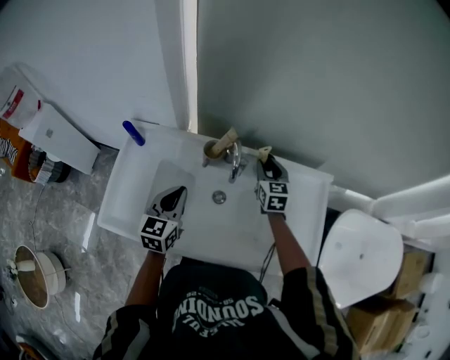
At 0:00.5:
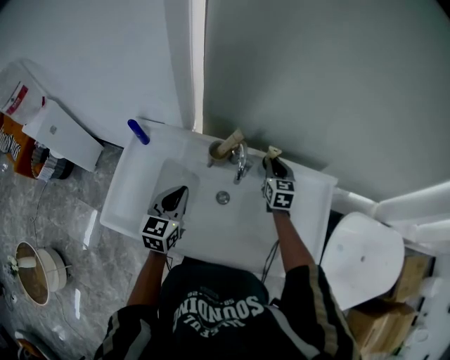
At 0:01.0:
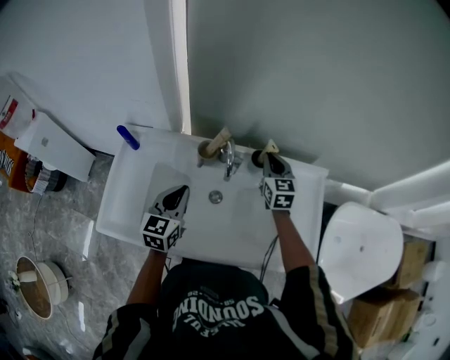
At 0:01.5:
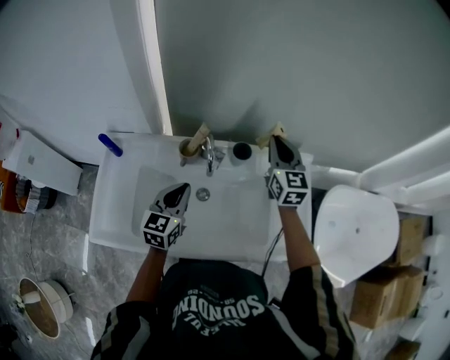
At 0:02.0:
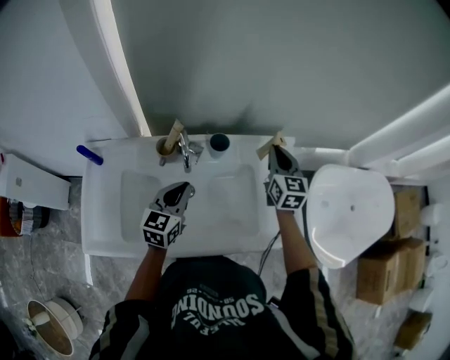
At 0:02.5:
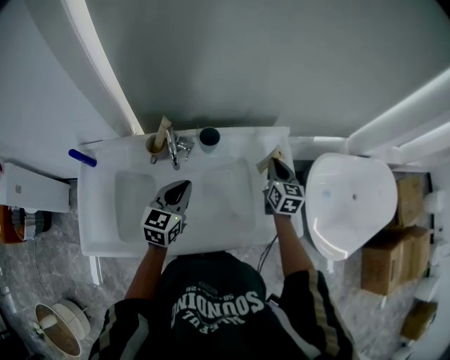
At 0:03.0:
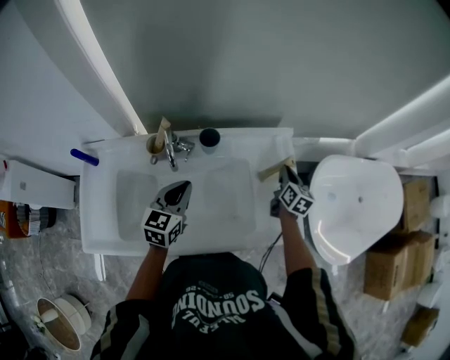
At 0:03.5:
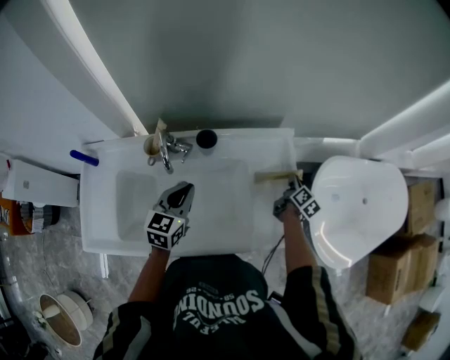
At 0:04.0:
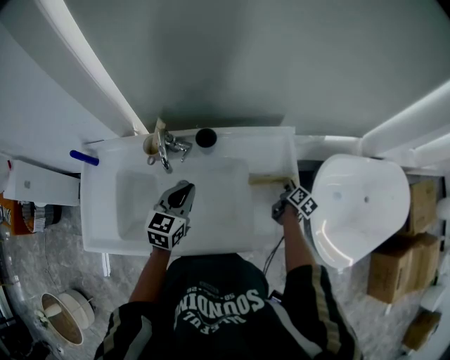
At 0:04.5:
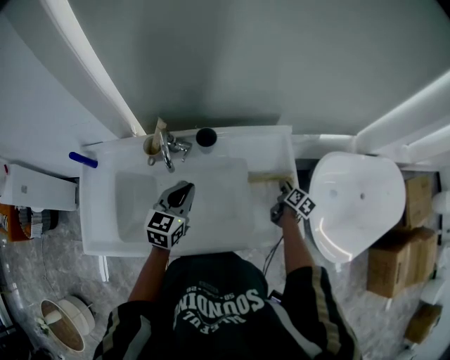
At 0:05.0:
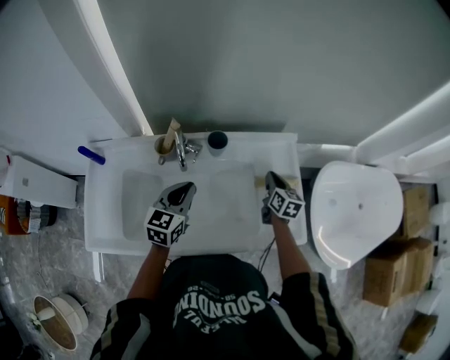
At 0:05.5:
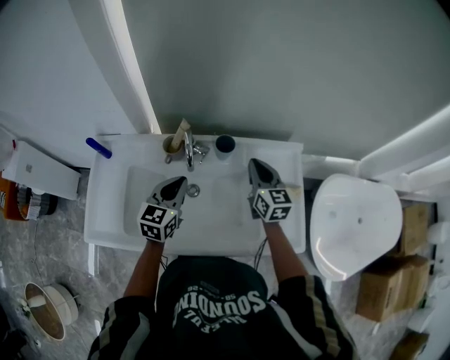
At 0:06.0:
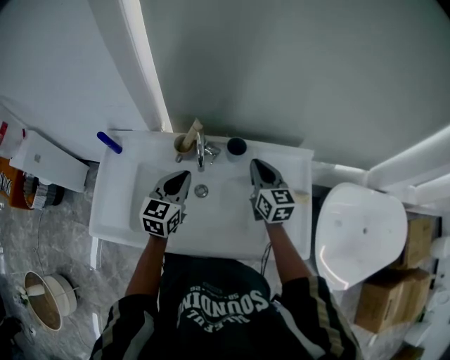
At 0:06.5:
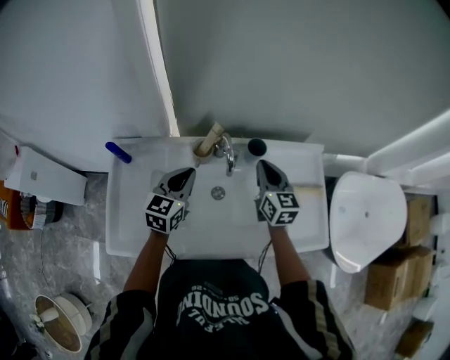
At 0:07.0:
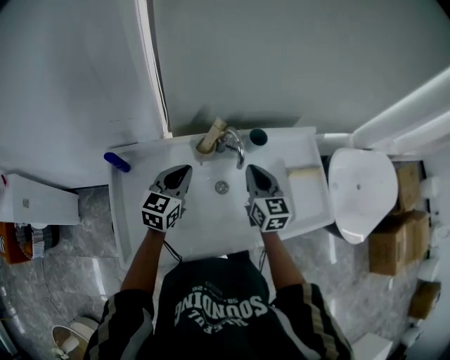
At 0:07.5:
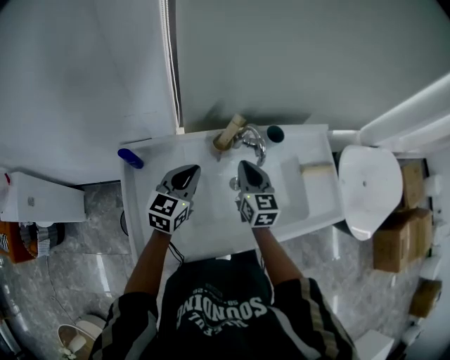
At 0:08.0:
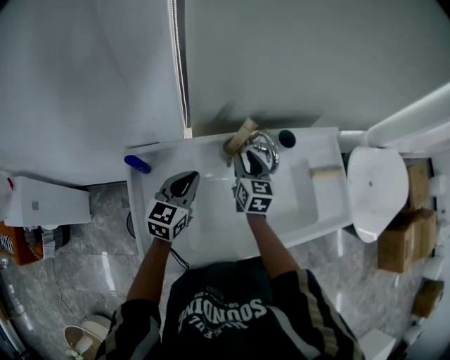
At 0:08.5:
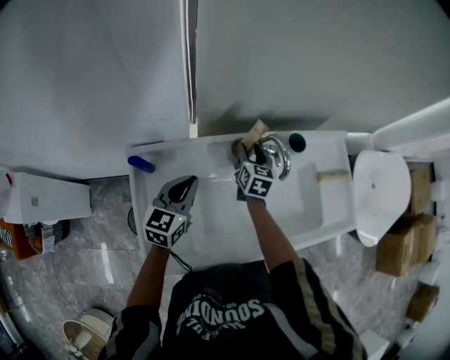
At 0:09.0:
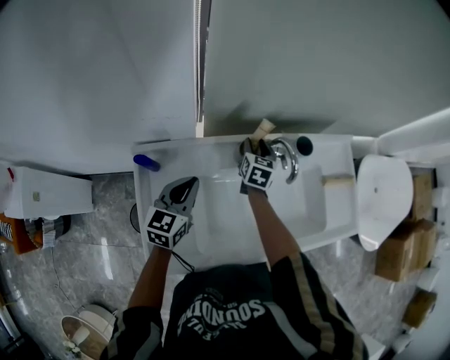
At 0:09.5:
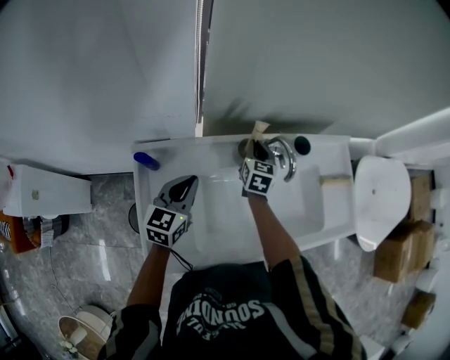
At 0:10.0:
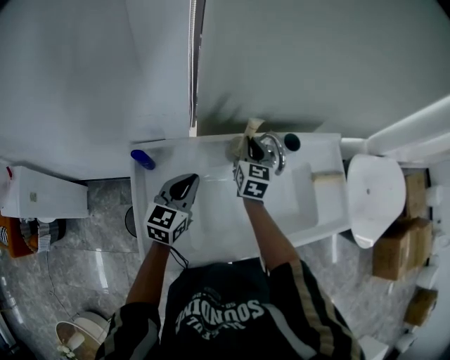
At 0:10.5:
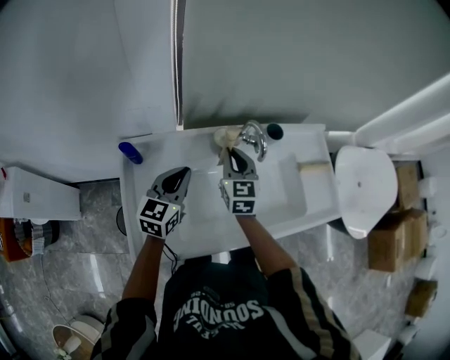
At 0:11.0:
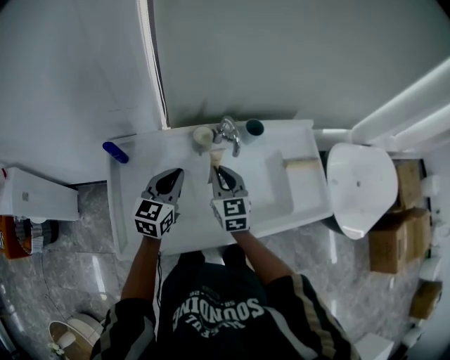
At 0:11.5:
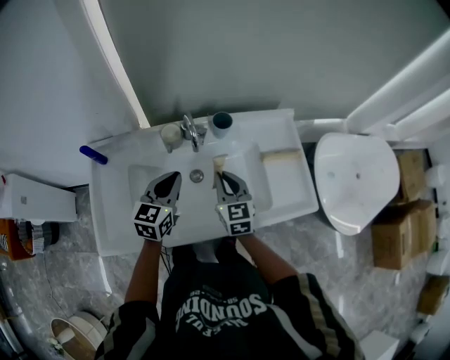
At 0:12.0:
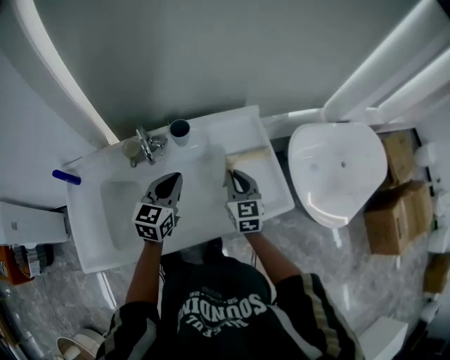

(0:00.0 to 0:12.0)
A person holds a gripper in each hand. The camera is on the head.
0:00.0 - 0:02.0: The right gripper travels to the right and upward by some 20 cm, and closes its fingers; the left gripper moves to the right, about 15 cm, and changes its angle by some 20 degrees.
0:02.0 - 0:04.0: The right gripper goes roughly 35 cm downward and to the right, and rotates around the line of its fingers by approximately 50 degrees, clockwise from behind. The left gripper shifts roughly 5 cm to the right.
0:04.0 - 0:06.0: The left gripper moves to the left, some 10 cm. The right gripper travels to the left and upward by about 35 cm, and rotates around the line of its fingers by about 50 degrees, counterclockwise from behind.
0:06.0 - 0:08.0: Both grippers move to the left, about 20 cm. The right gripper swivels about 20 degrees, and opens its fingers.
0:08.0 - 0:10.0: The right gripper reaches roughly 5 cm downward, then returns, and closes up.
0:10.0 - 0:12.0: The two grippers go roughly 35 cm to the right.

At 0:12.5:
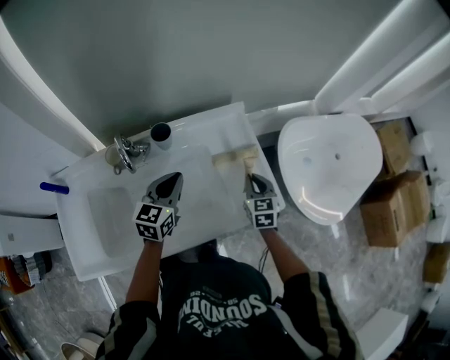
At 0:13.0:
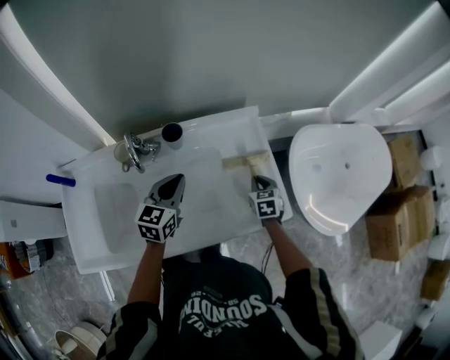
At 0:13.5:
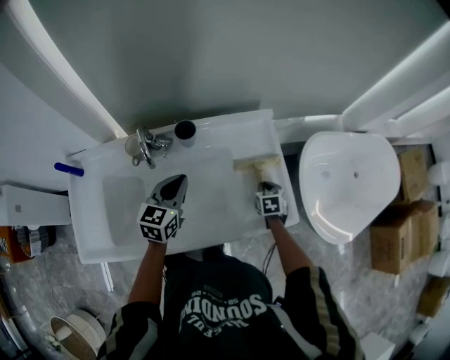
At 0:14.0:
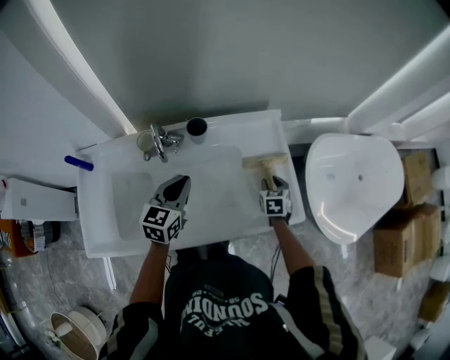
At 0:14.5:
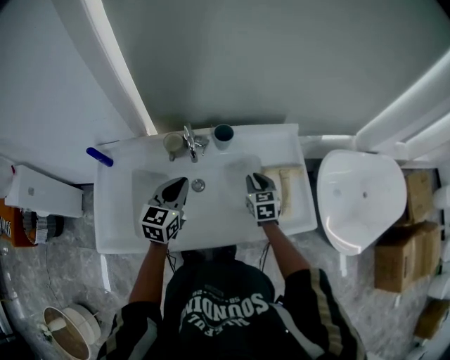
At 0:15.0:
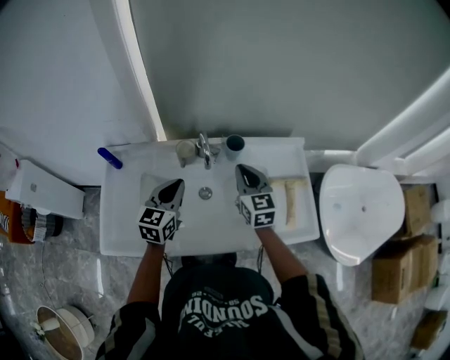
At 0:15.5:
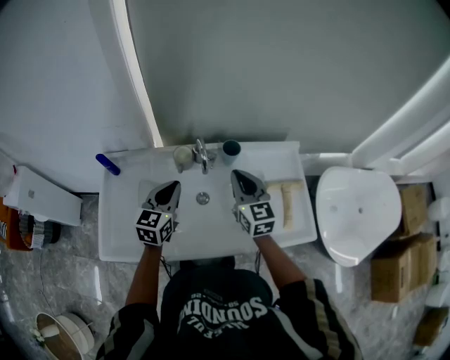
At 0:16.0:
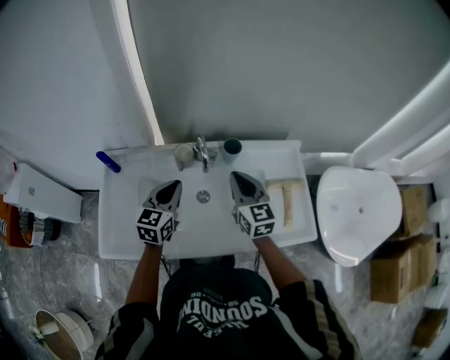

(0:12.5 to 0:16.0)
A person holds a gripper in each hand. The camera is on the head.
0:12.5 - 0:14.5: The left gripper is displaced to the left and backward by approximately 15 cm; the right gripper moves to the left, some 20 cm.
0:14.5 - 0:16.0: The left gripper is displaced to the left by about 5 cm, while the right gripper moves upward and to the left, approximately 20 cm, and rotates roughly 30 degrees.

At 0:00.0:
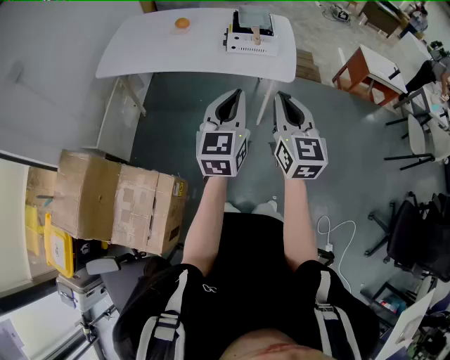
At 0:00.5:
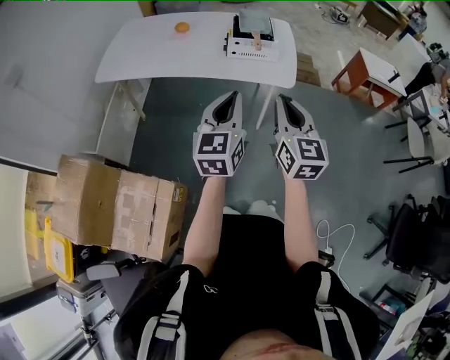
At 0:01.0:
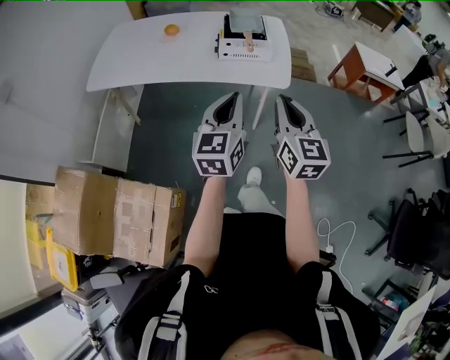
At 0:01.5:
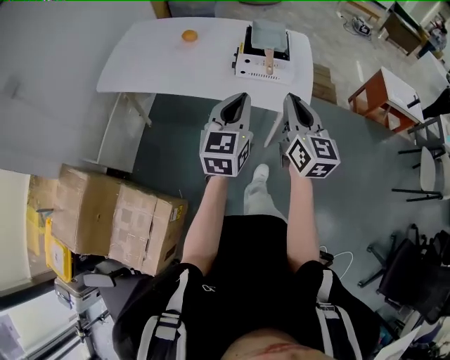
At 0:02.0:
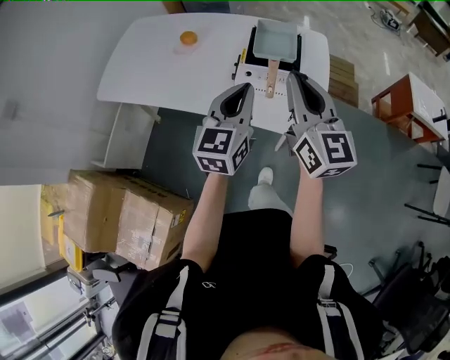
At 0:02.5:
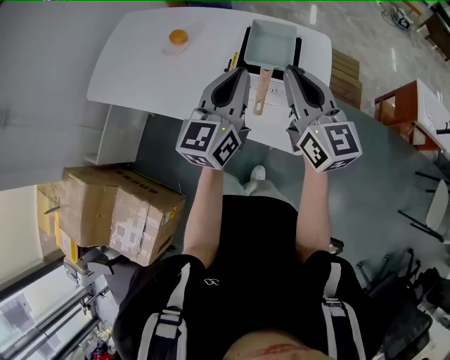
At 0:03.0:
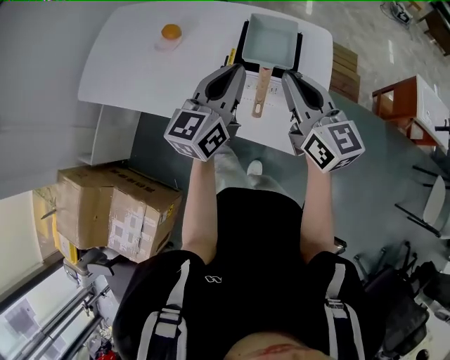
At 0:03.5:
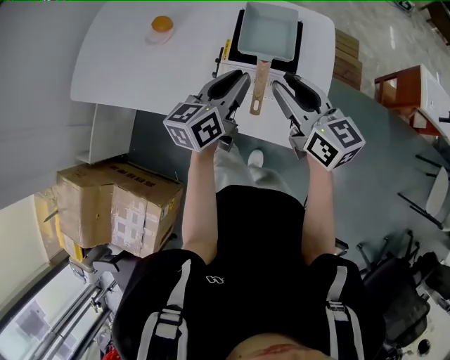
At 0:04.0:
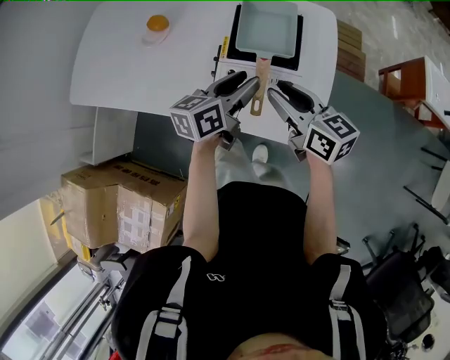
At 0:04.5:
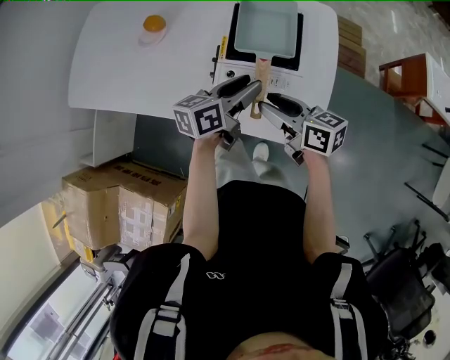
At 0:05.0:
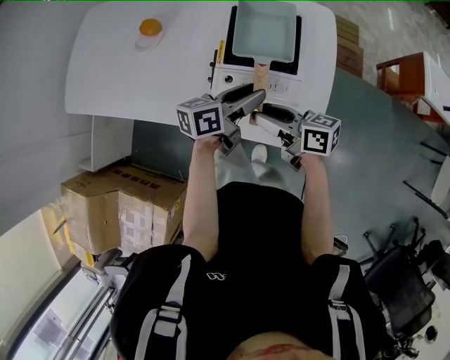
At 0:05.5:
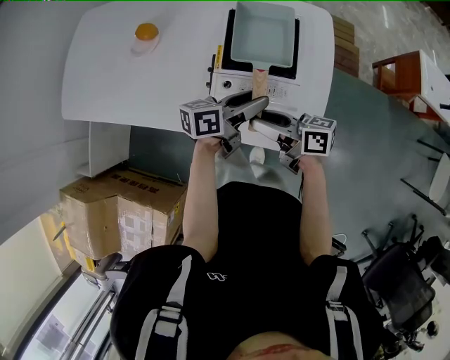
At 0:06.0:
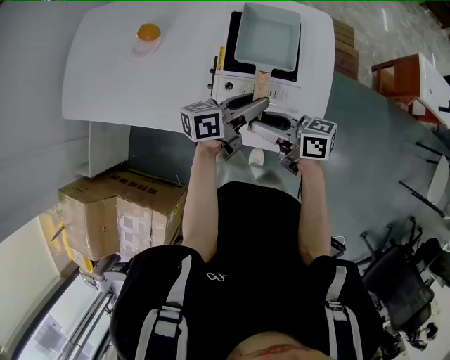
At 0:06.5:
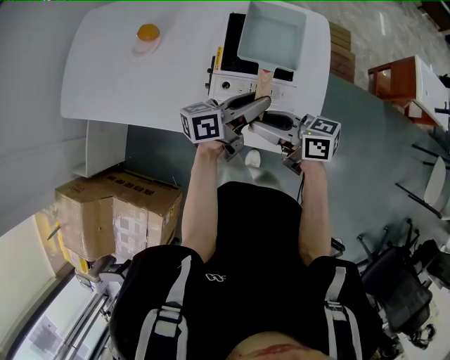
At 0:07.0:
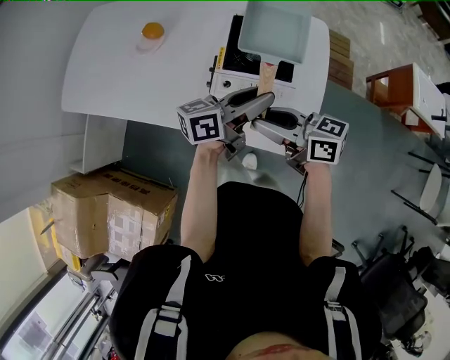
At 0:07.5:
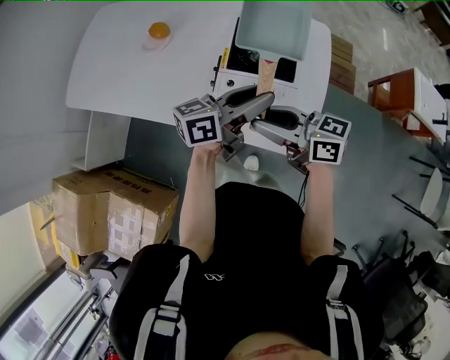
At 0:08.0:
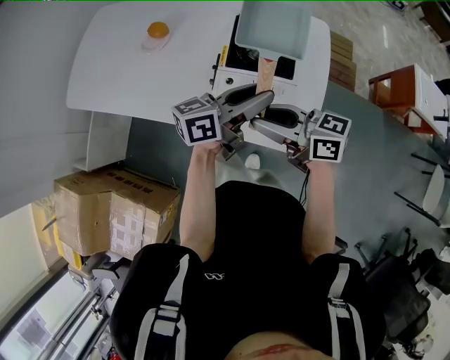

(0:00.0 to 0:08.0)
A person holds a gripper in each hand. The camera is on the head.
0:00.0 - 0:02.0: Both grippers move forward, some 35 cm.
0:02.0 - 0:04.0: The left gripper shifts roughly 20 cm forward and downward, turns by approximately 40 degrees, and opens its fingers. Meanwhile the right gripper heads downward and forward, covering some 20 cm, rotates approximately 40 degrees, and opens up.
0:04.0 - 0:06.0: The left gripper moves roughly 5 cm, and rotates about 20 degrees. Meanwhile the right gripper is displaced downward and to the left by some 10 cm, and turns by some 30 degrees.
0:06.0 - 0:08.0: The two grippers go some 10 cm upward.

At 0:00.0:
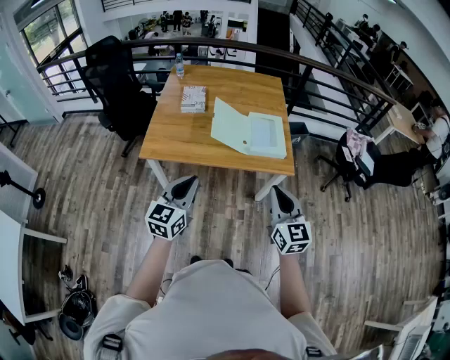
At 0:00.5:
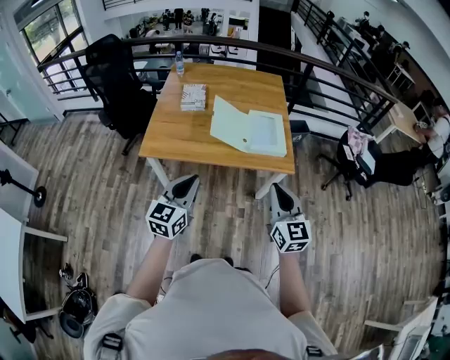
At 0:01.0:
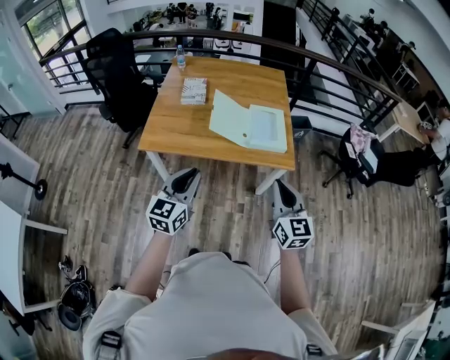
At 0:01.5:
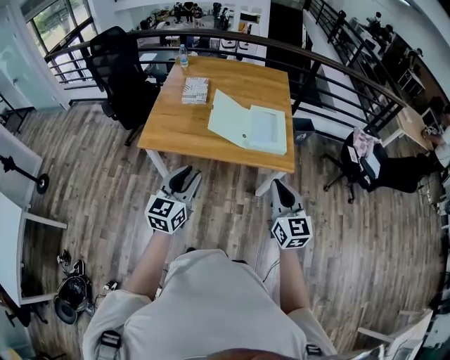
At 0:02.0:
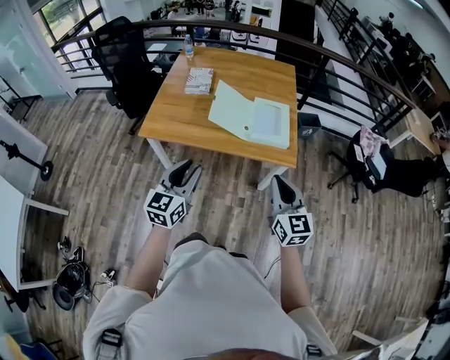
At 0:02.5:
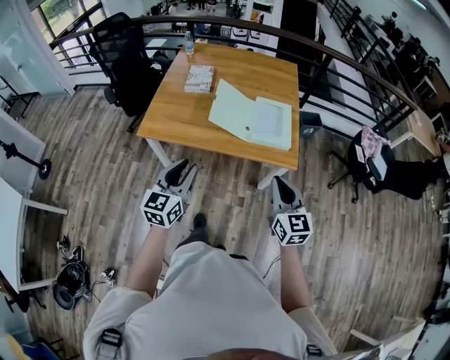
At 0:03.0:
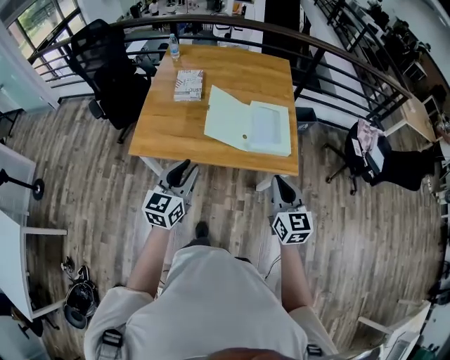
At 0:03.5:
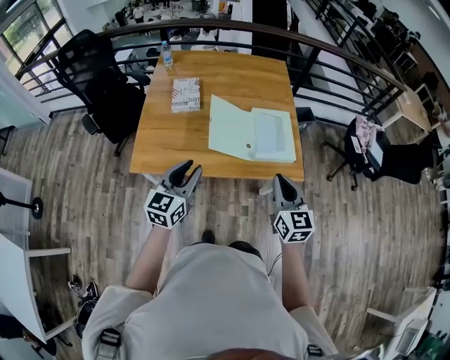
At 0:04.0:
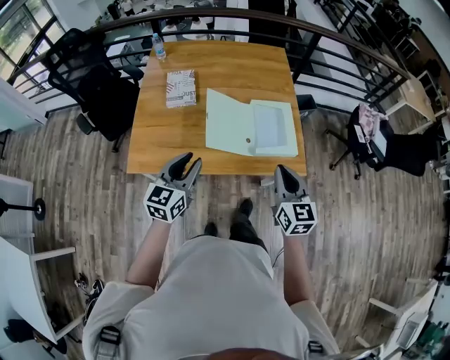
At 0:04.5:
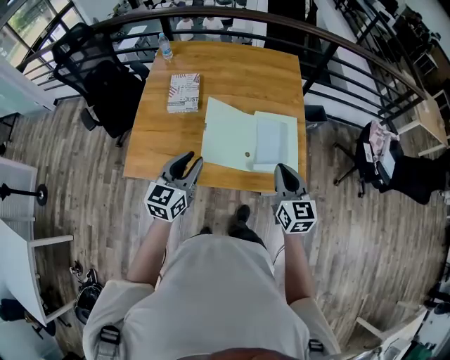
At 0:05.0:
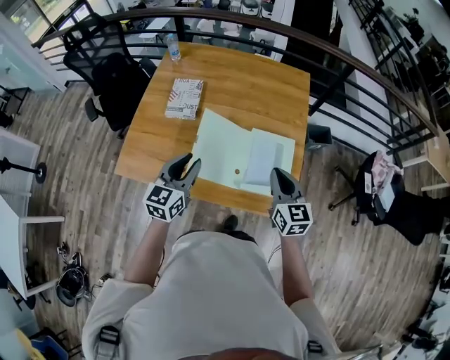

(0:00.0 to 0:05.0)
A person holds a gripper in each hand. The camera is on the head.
0:00.0 - 0:02.5: The left gripper ends up some 5 cm from where it was, and opens up, while the right gripper travels to the right and forward by approximately 10 cm.
0:02.5 - 0:05.0: Both grippers move forward, some 40 cm.
